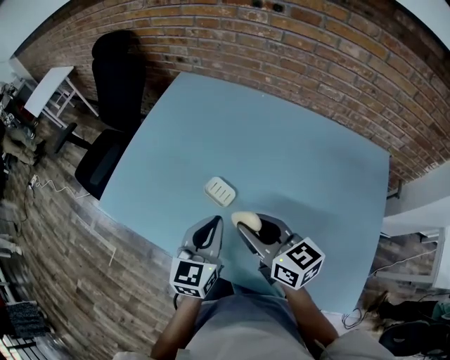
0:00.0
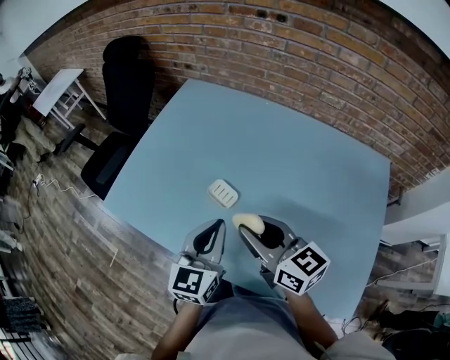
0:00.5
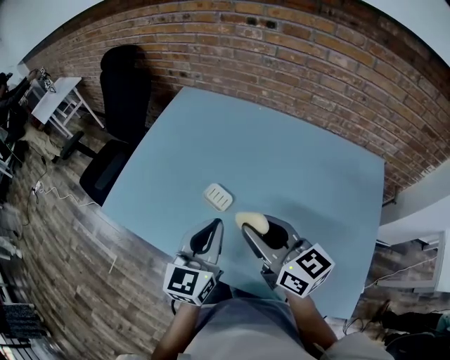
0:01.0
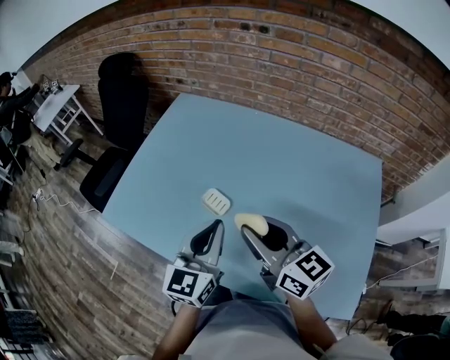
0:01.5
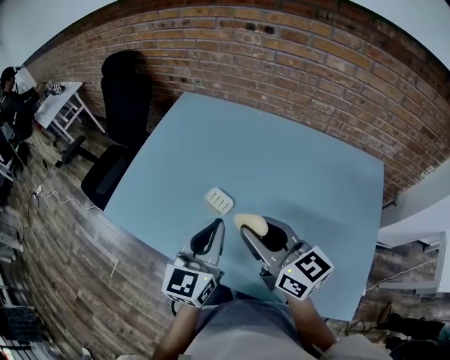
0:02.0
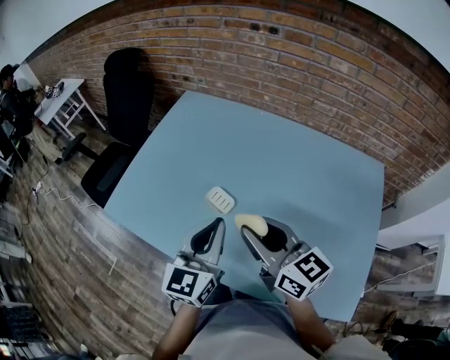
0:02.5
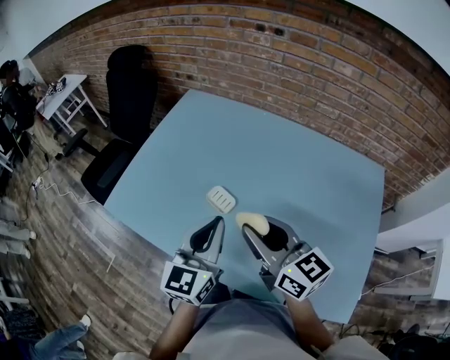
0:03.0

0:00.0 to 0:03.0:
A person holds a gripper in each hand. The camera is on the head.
0:00.0 to 0:01.5: The two grippers go approximately 10 cm upward.
0:01.5 to 0:03.0: The grippers stay close to where they were, moving slightly.

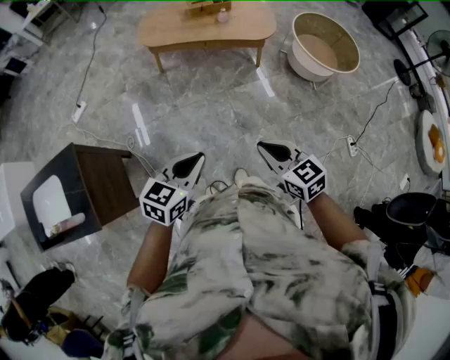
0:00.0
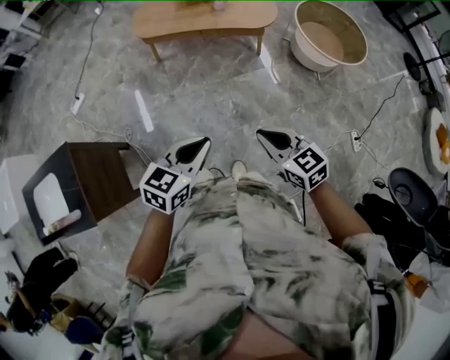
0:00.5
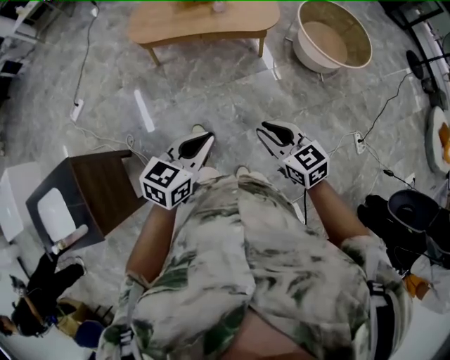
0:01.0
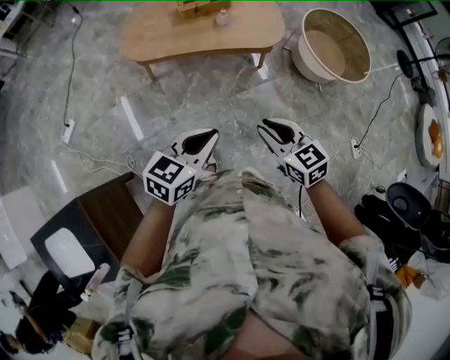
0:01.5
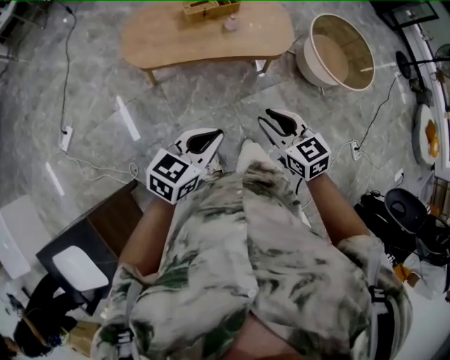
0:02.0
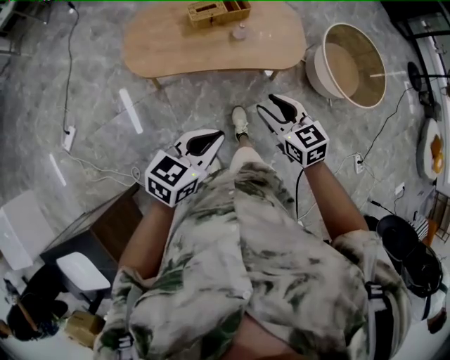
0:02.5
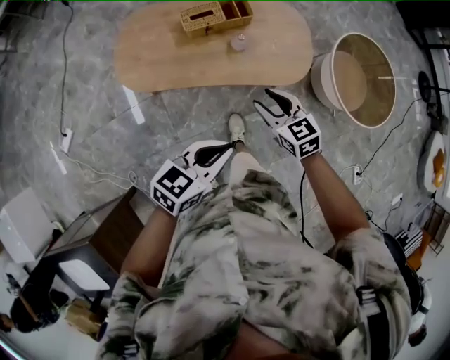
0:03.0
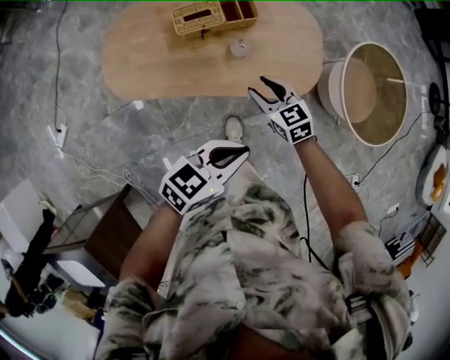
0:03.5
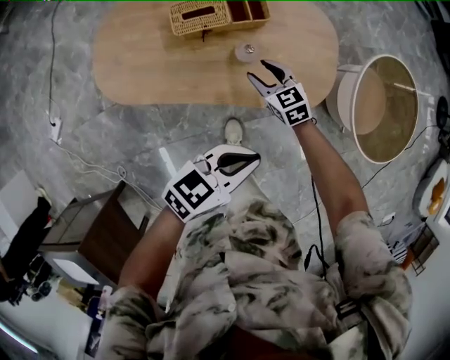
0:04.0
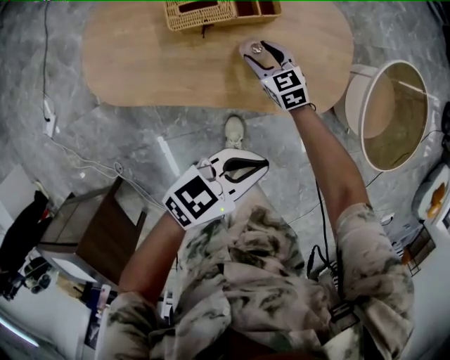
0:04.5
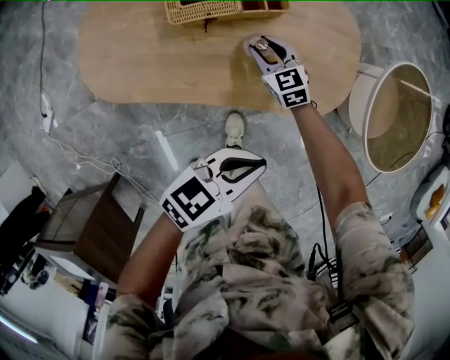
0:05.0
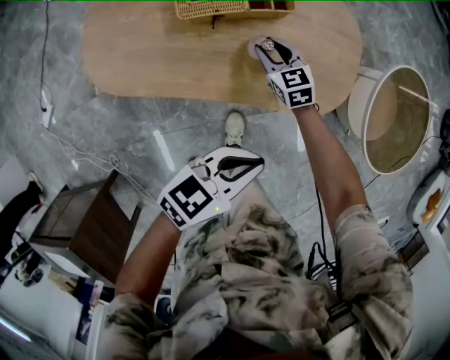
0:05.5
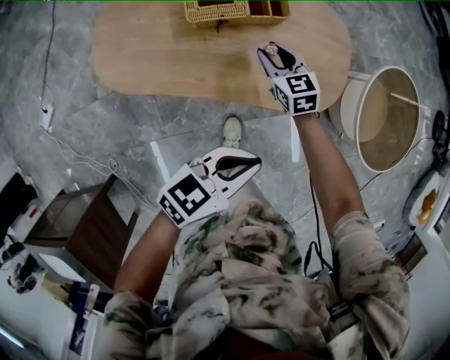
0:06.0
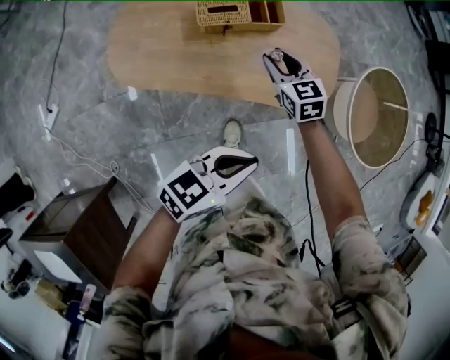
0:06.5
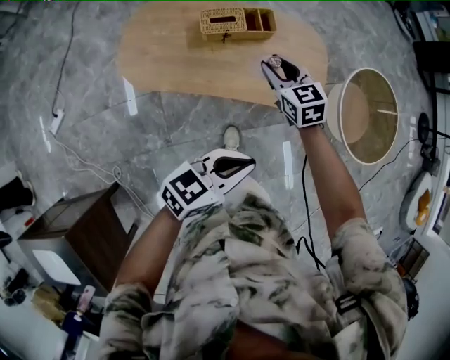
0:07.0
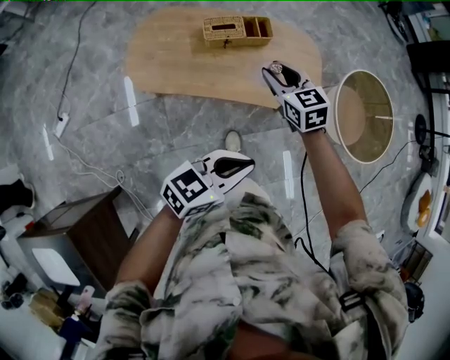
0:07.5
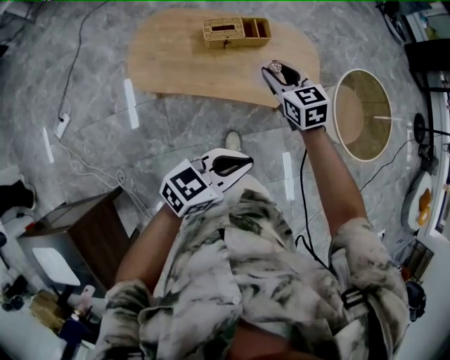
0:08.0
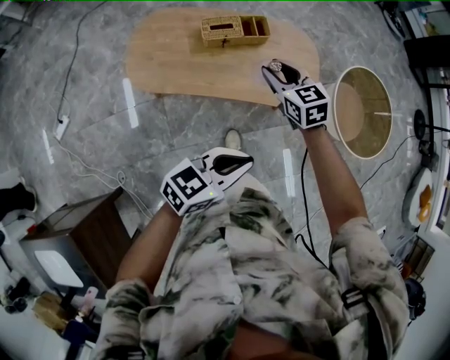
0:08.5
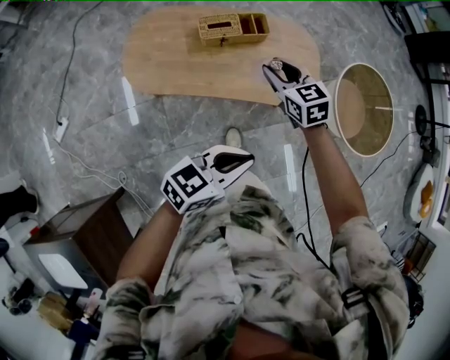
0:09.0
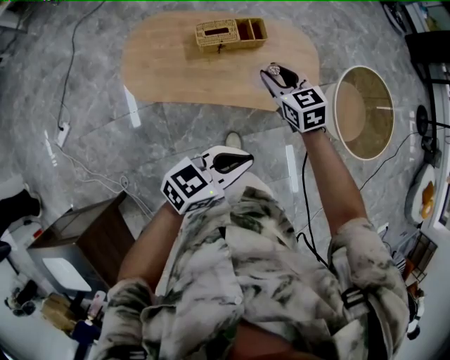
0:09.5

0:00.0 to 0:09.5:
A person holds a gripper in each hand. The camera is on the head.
0:00.0 to 0:02.0: The pair of grippers is taken forward, approximately 50 cm. The right gripper opens up.
0:02.0 to 0:04.0: The two grippers travel together, forward, roughly 50 cm. The left gripper moves downward, about 20 cm, while the right gripper travels downward by roughly 35 cm, and opens up.
0:04.0 to 0:05.5: The left gripper goes some 5 cm downward. The right gripper is displaced downward and forward by about 10 cm.
0:05.5 to 0:07.5: The grippers both shift upward and backward by approximately 35 cm.
0:07.5 to 0:09.5: The left gripper shifts some 5 cm forward.

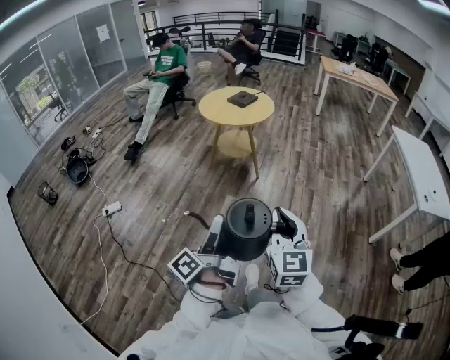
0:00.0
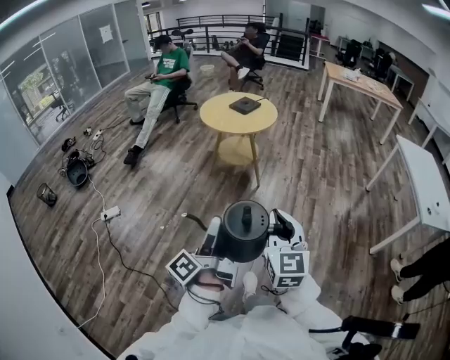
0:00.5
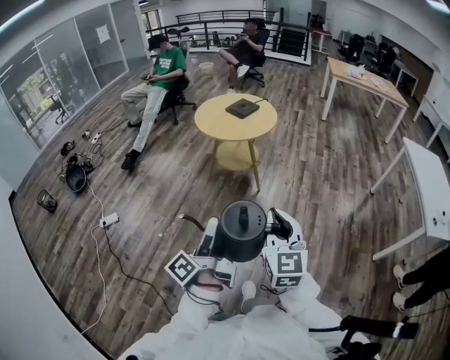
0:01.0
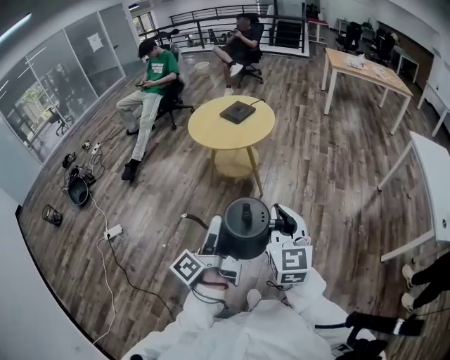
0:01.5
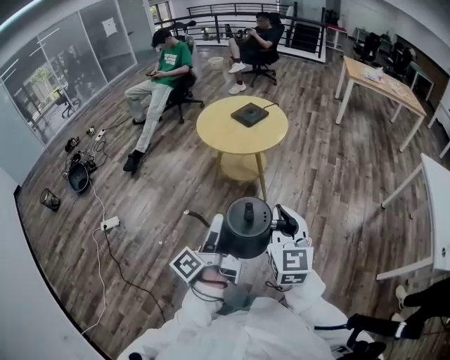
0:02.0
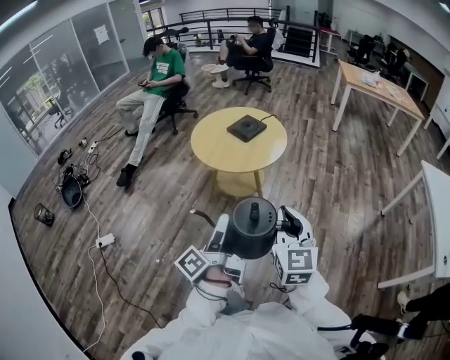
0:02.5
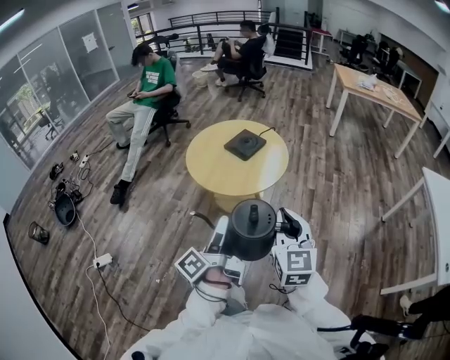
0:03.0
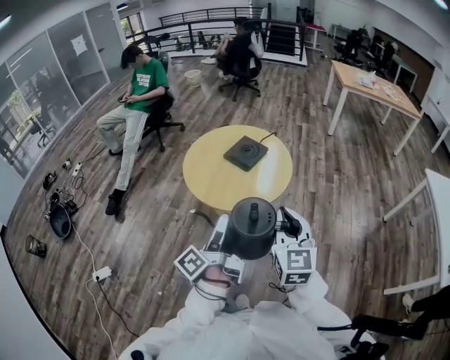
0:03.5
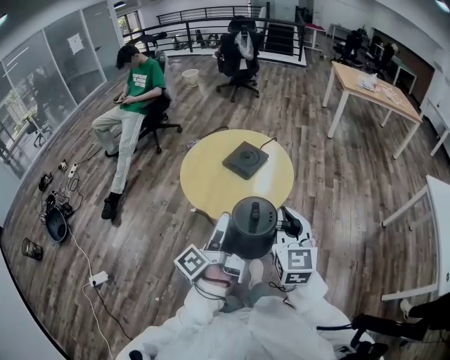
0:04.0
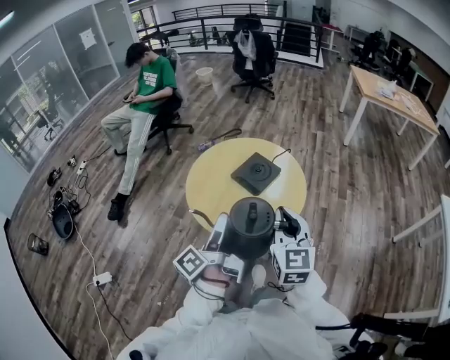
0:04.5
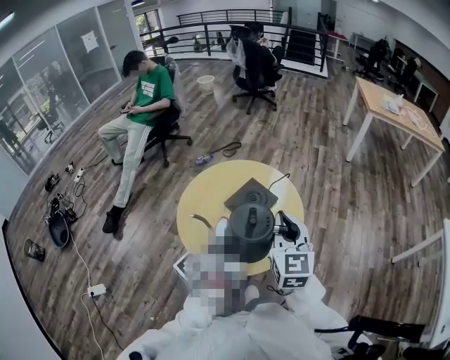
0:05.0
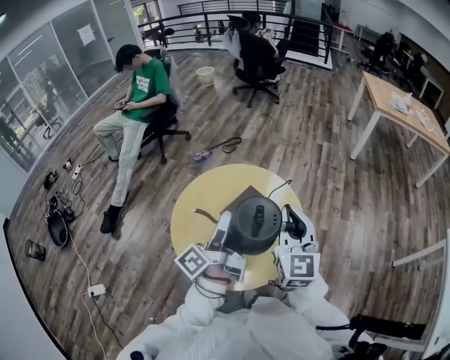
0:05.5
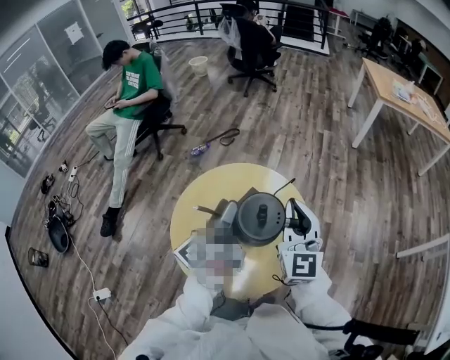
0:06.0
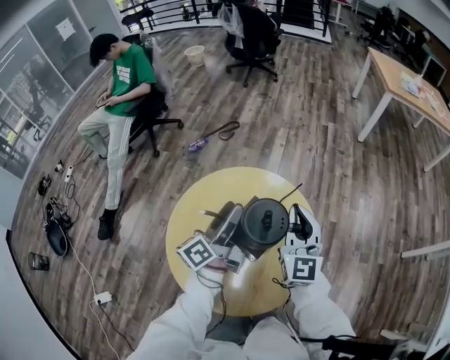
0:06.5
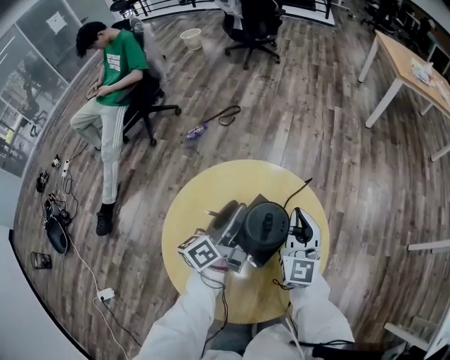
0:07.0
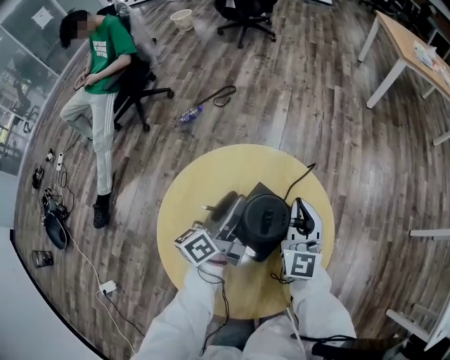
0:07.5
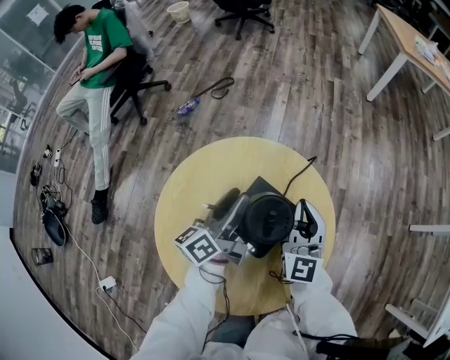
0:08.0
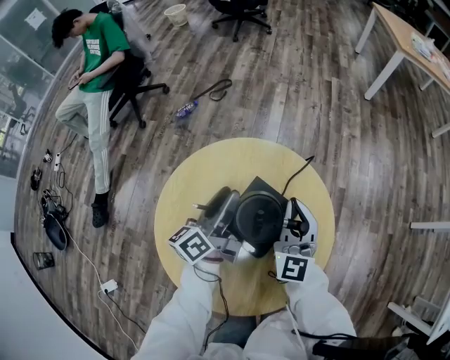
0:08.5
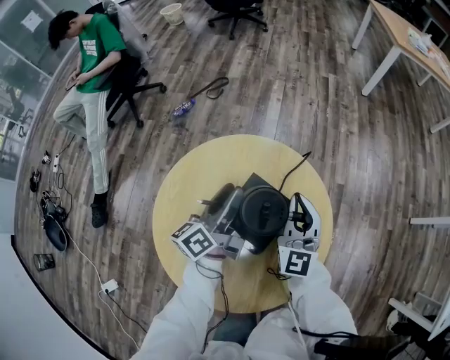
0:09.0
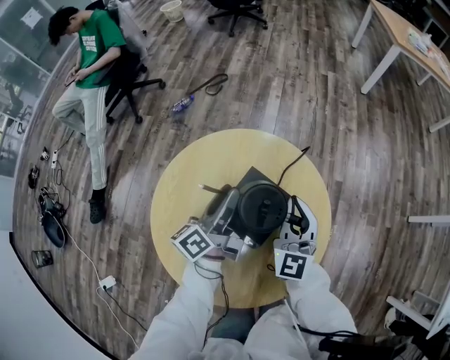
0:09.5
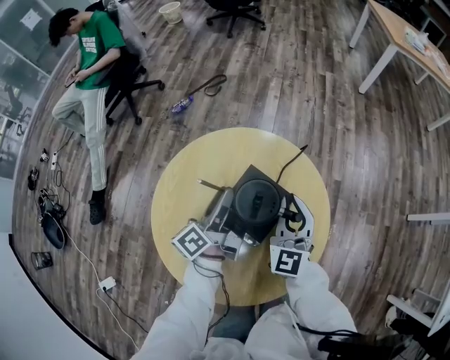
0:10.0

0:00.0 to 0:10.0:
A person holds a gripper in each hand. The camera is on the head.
0:00.0 to 0:02.0: Both grippers move forward, some 35 cm.
0:02.0 to 0:04.0: The two grippers travel together, forward, roughly 40 cm.
0:04.0 to 0:06.0: The two grippers travel together, forward, some 40 cm. The left gripper swivels approximately 20 degrees.
0:06.0 to 0:08.0: The two grippers go about 25 cm downward and forward. The left gripper rotates some 20 degrees, and closes up.
0:08.0 to 0:10.0: The left gripper ends up roughly 5 cm from where it was.

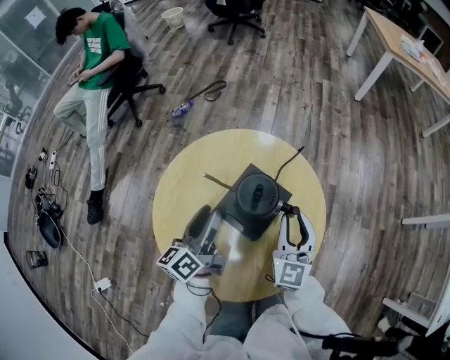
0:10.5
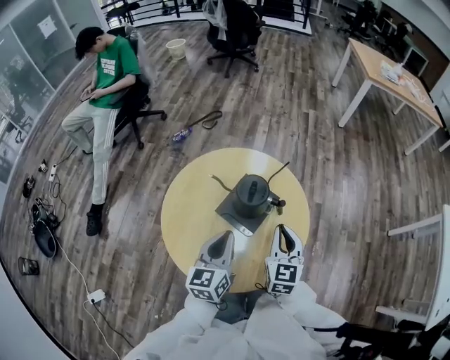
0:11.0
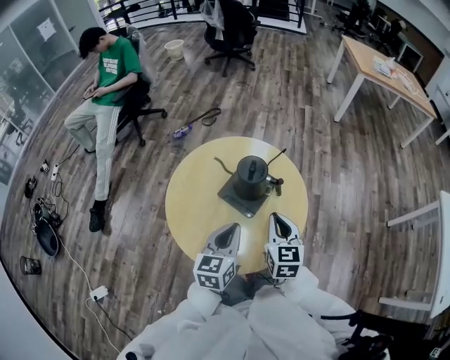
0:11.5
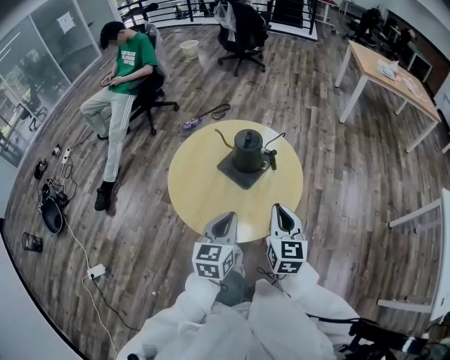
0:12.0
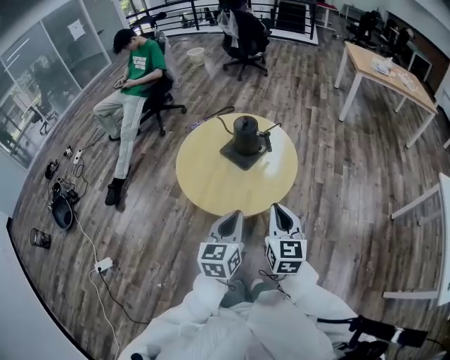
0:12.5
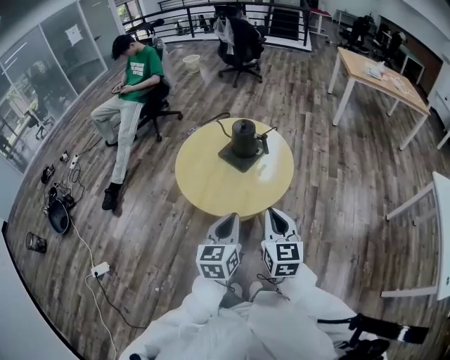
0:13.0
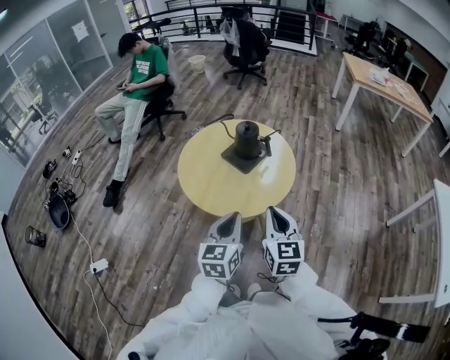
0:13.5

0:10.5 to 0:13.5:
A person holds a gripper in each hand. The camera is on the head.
0:10.5 to 0:12.0: The left gripper travels backward and to the right by approximately 30 cm, changes its angle by approximately 30 degrees, and closes its fingers; the right gripper shifts approximately 25 cm backward, and closes.
0:12.0 to 0:13.5: Both grippers travel together backward, about 15 cm.

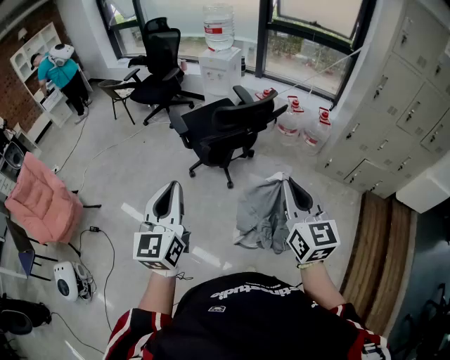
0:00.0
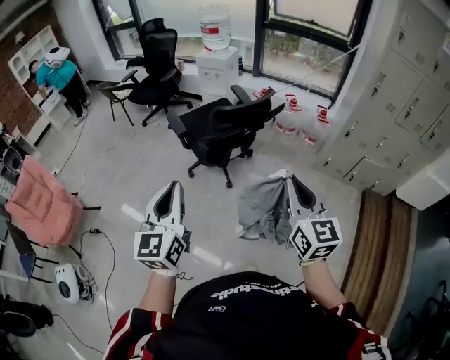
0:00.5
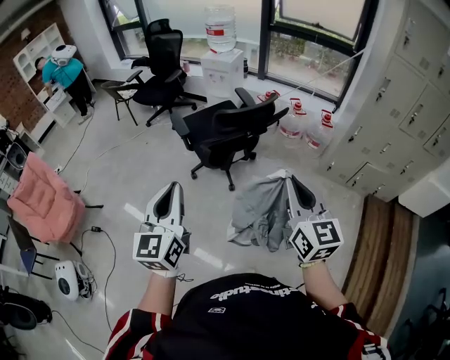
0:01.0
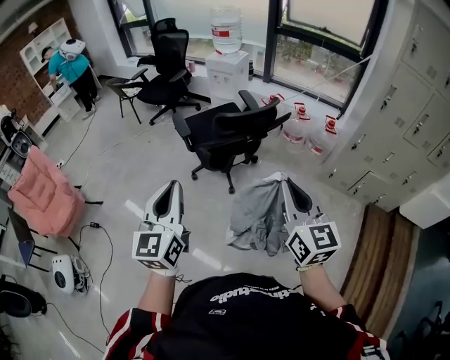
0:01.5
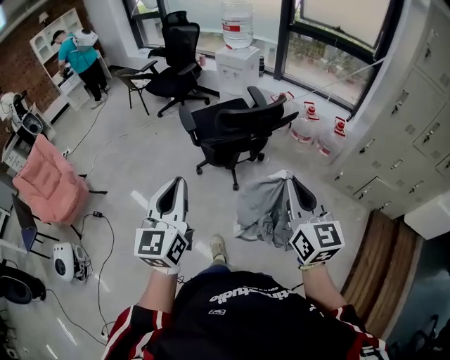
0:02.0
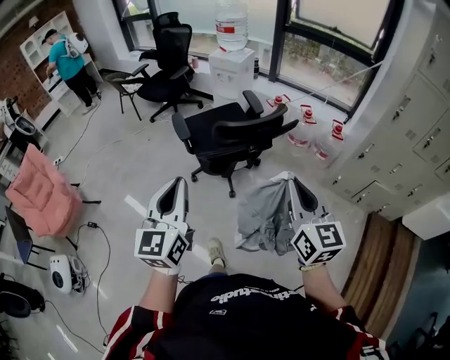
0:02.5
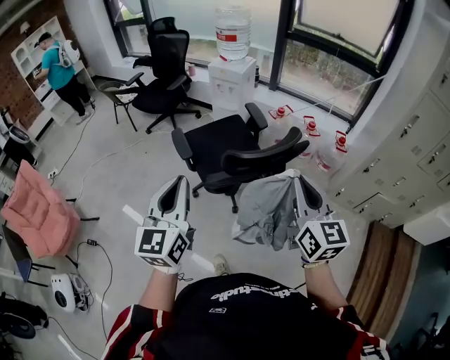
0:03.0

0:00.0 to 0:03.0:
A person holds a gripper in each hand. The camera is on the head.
0:00.0 to 0:01.5: The right gripper shifts by some 5 cm.
0:01.5 to 0:03.0: The grippers both shift forward by approximately 25 cm.
